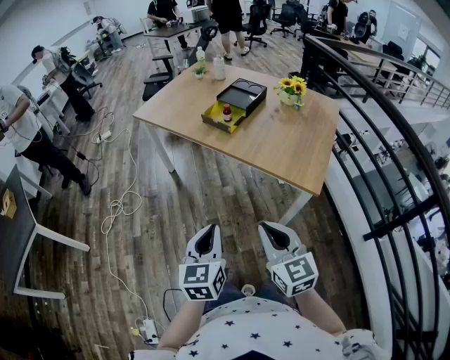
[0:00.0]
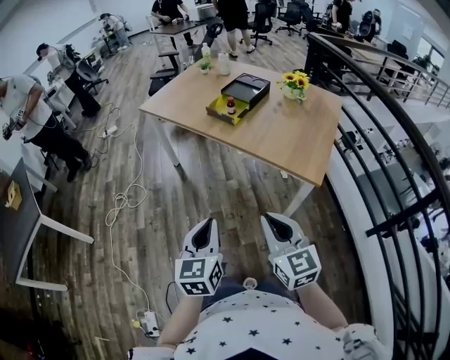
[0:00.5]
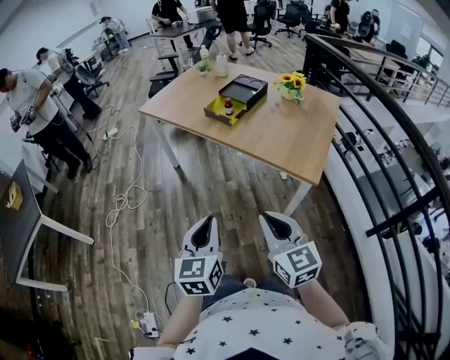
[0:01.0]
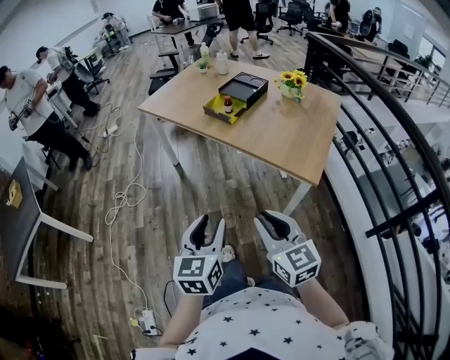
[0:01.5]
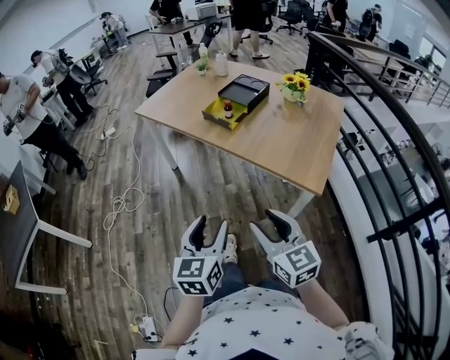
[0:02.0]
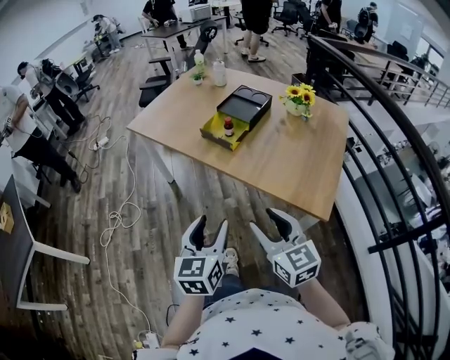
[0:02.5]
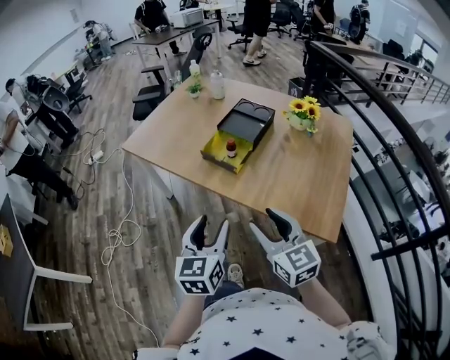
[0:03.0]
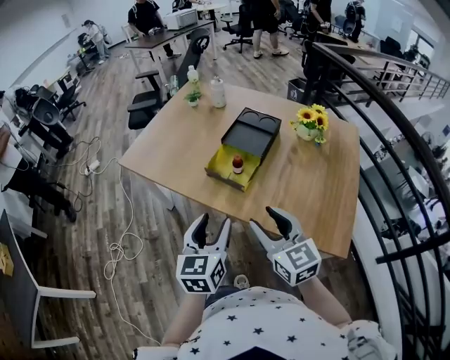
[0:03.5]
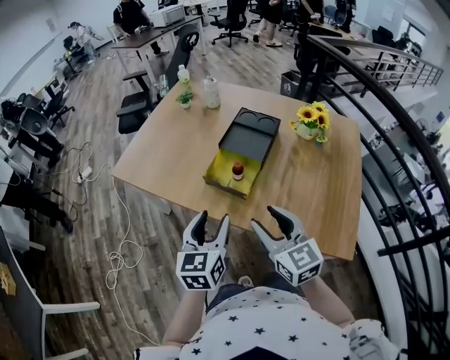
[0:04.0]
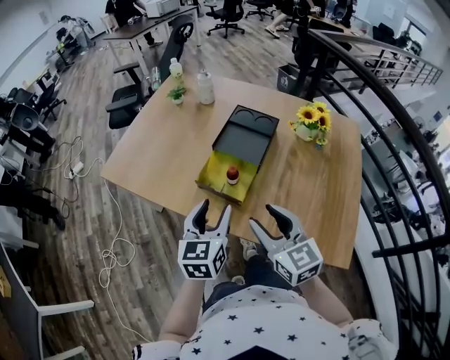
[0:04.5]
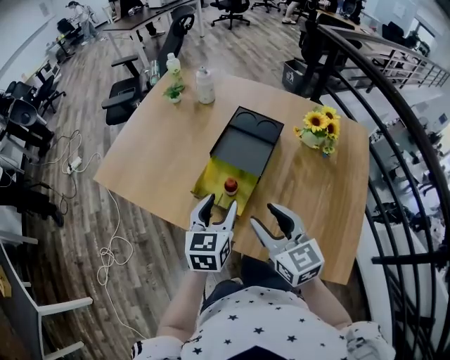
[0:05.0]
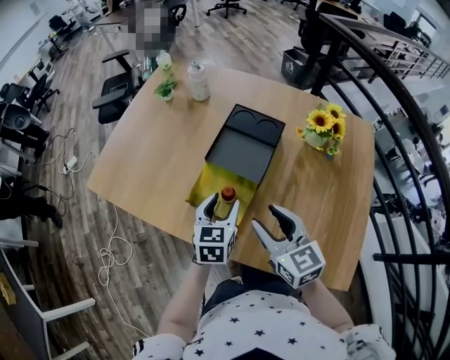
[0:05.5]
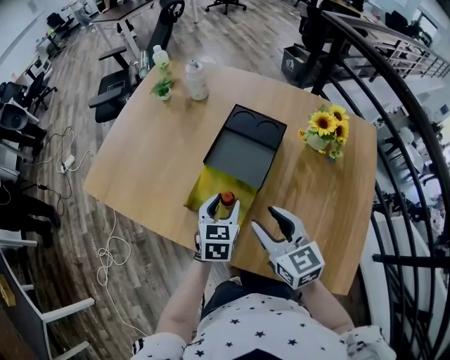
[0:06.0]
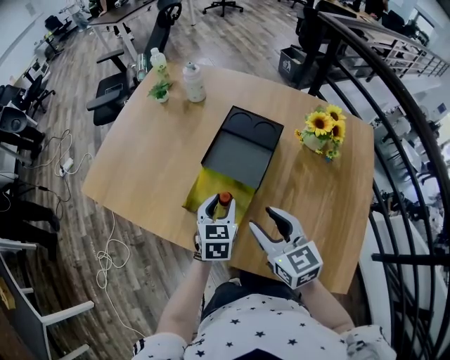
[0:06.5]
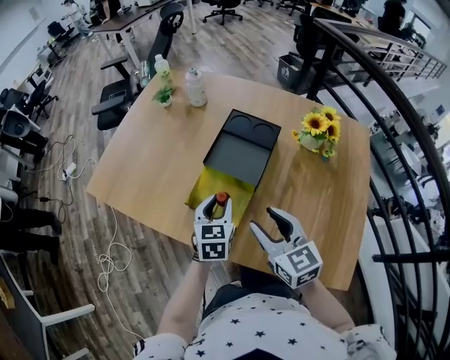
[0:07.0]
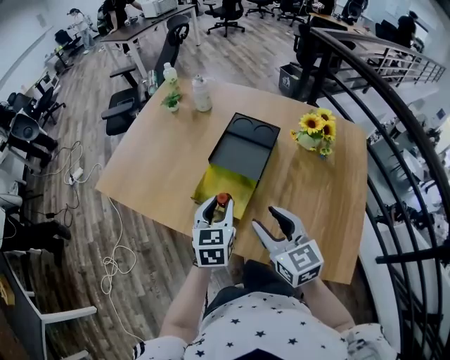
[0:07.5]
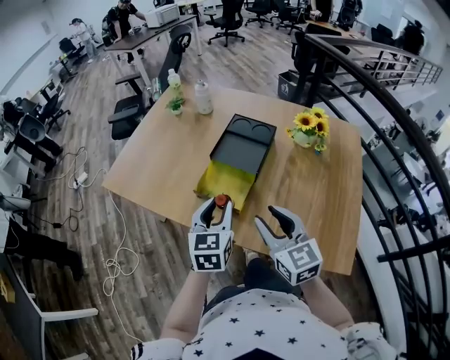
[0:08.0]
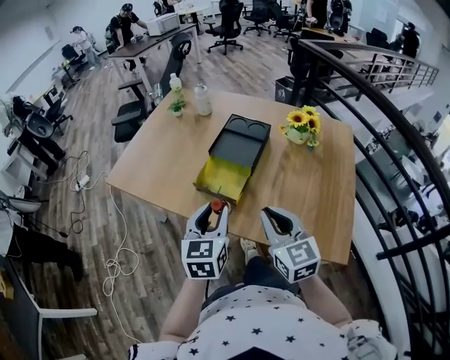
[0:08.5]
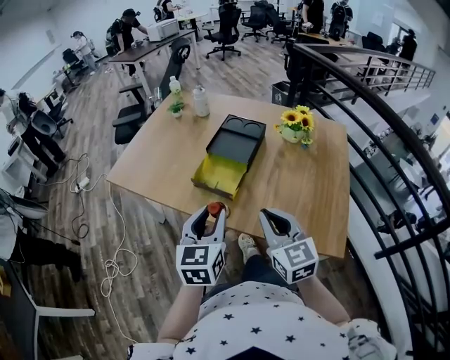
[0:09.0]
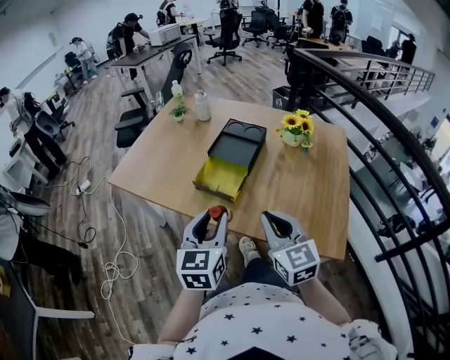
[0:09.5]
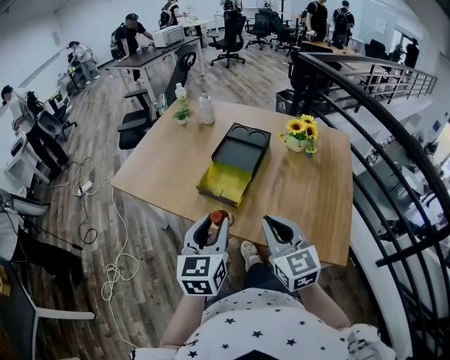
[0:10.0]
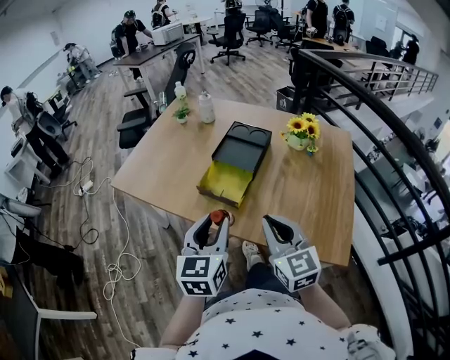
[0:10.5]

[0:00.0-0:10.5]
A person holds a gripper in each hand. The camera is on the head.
0:00.0 to 0:02.0: The left gripper opens its fingers, while the right gripper opens its fingers.
0:02.0 to 0:04.0: The pair of grippers is taken forward, roughly 40 cm.
0:04.0 to 0:06.5: The left gripper heads forward, downward and to the right, covering roughly 30 cm. Meanwhile the right gripper shifts about 20 cm forward and downward.
0:06.5 to 0:08.5: Both grippers travel together backward and upward, about 20 cm. The right gripper closes its fingers.
0:08.5 to 0:10.5: The left gripper ends up about 5 cm from where it was.

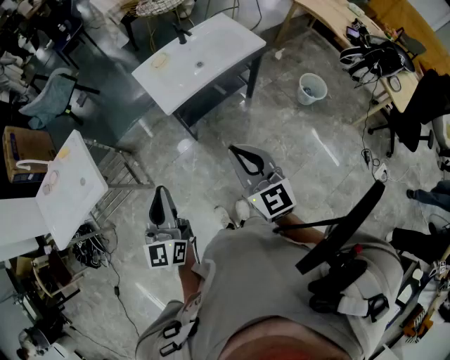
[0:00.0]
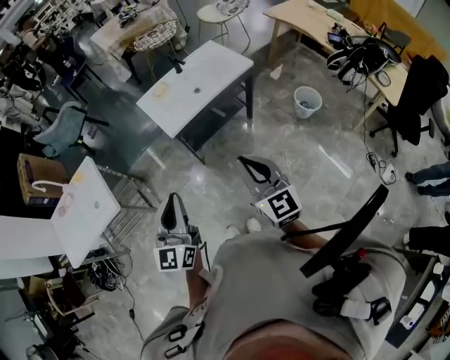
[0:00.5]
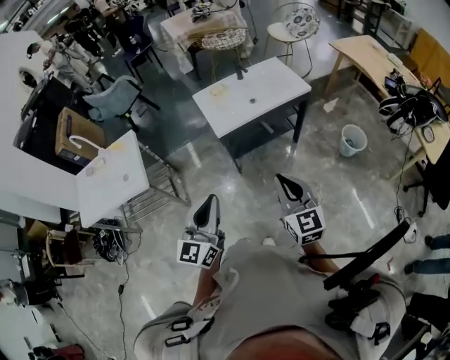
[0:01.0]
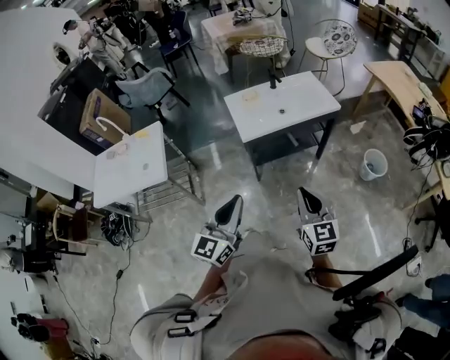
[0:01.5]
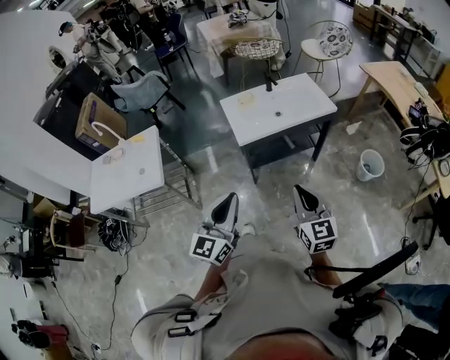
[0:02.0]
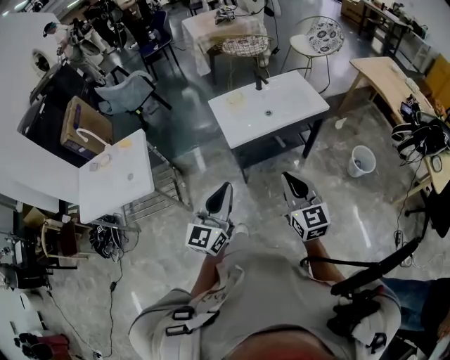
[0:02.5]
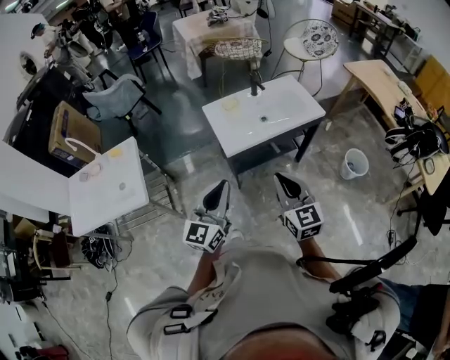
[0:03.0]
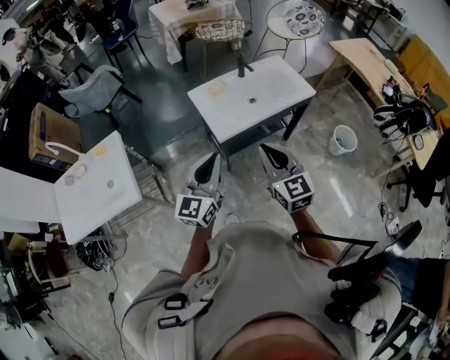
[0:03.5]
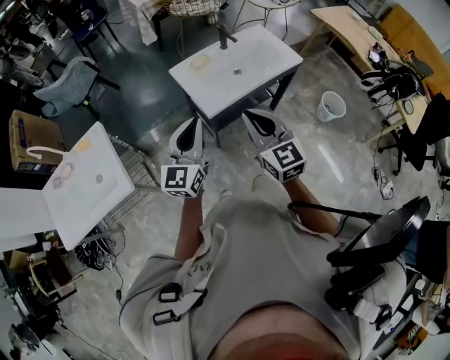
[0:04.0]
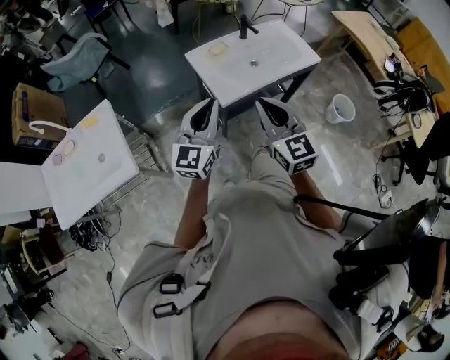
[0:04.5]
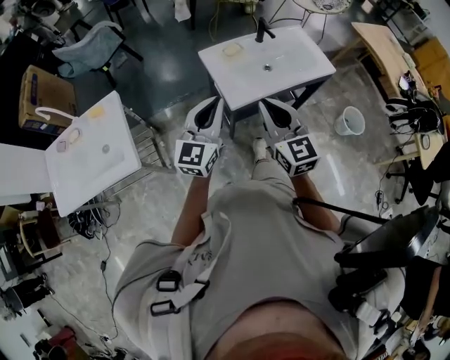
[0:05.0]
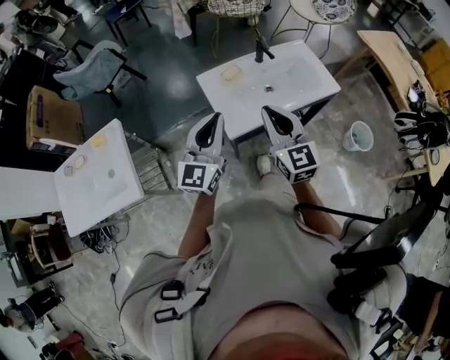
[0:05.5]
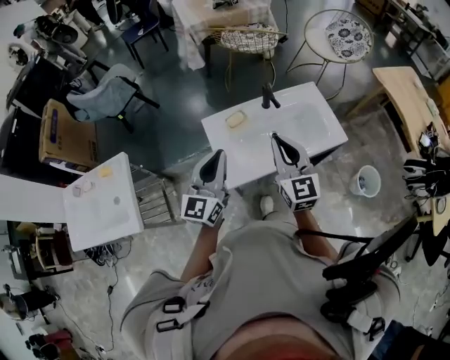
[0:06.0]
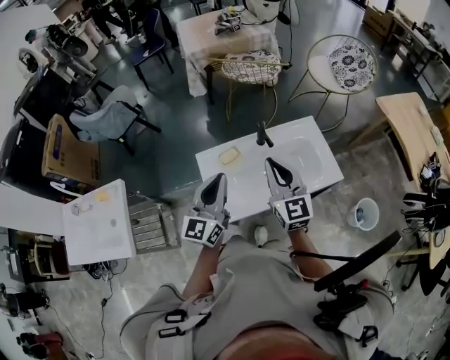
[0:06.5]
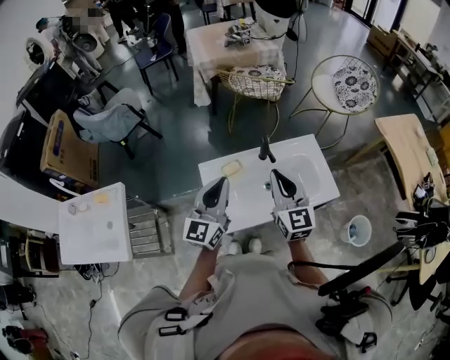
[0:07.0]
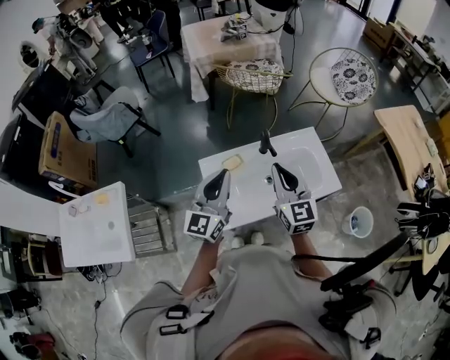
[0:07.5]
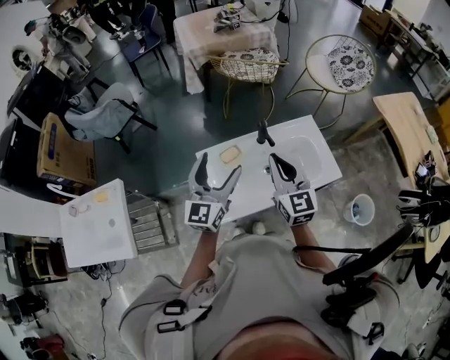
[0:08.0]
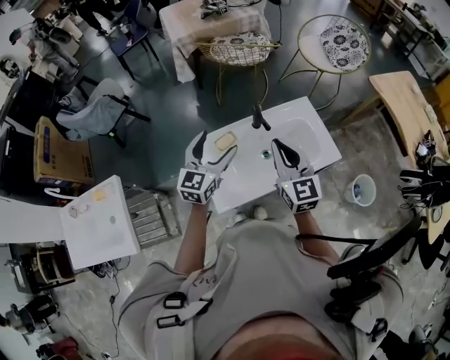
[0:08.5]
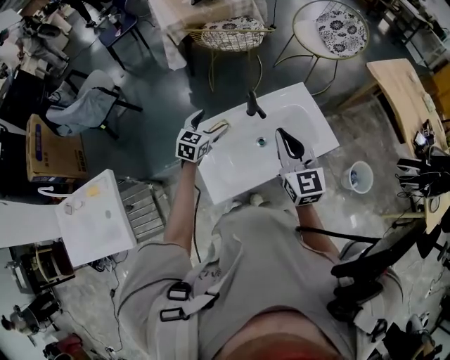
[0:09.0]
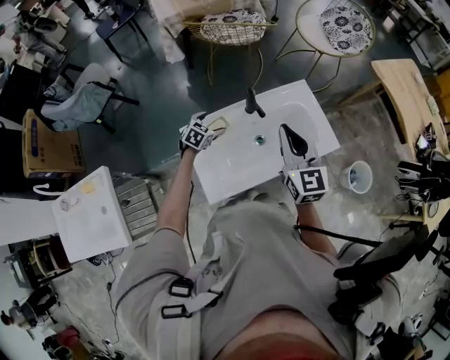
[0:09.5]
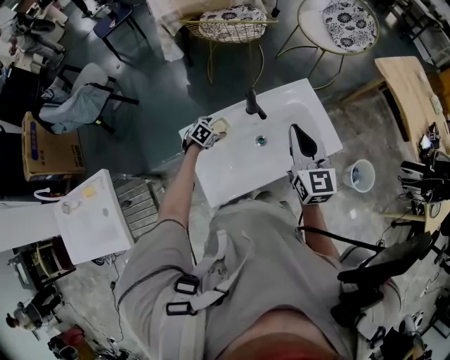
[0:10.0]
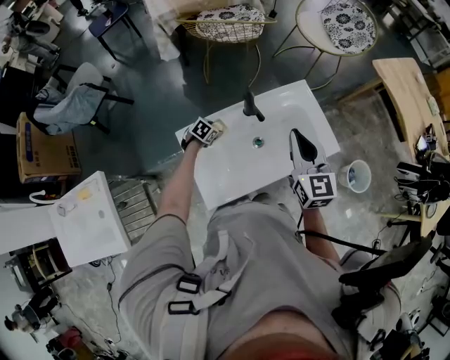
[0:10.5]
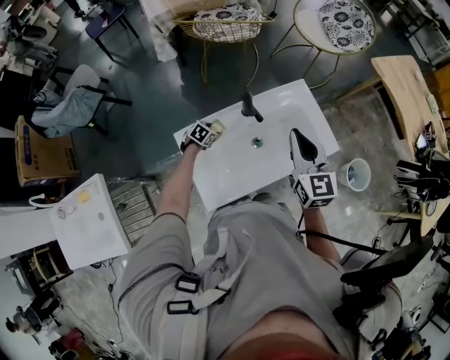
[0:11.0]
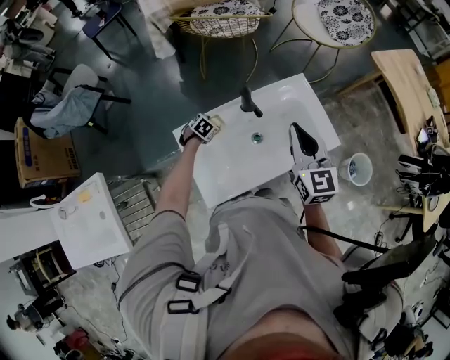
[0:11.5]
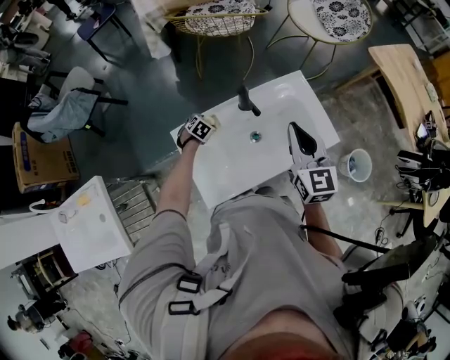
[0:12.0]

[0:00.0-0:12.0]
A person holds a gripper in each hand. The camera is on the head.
0:00.0 to 0:02.0: The two grippers go some 10 cm to the right and backward.
0:02.0 to 0:04.0: Both grippers move forward and to the left, about 25 cm.
0:04.0 to 0:06.0: Both grippers travel together forward, about 25 cm.
0:06.0 to 0:08.0: The grippers both shift forward by about 10 cm. The left gripper opens up.
0:08.0 to 0:10.0: The right gripper heads to the right and forward, covering some 10 cm. The left gripper travels downward and forward by about 40 cm, and tilts its fingers approximately 60 degrees downward.
0:10.0 to 0:12.0: The left gripper travels downward by some 5 cm.

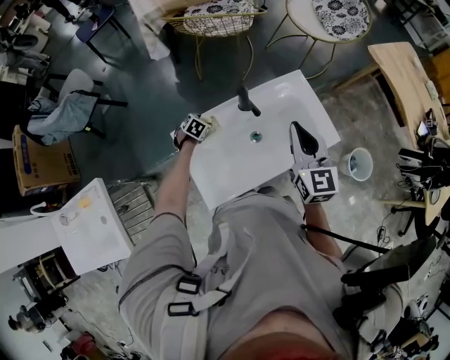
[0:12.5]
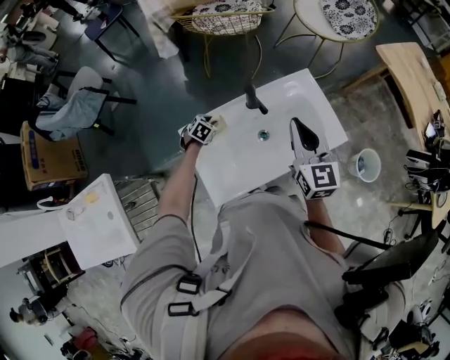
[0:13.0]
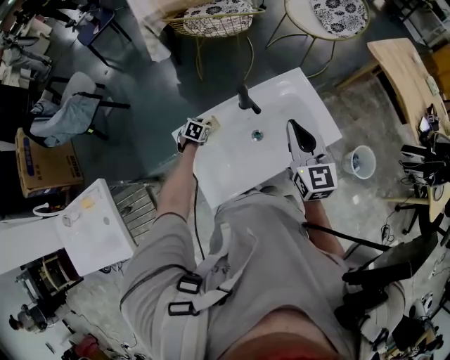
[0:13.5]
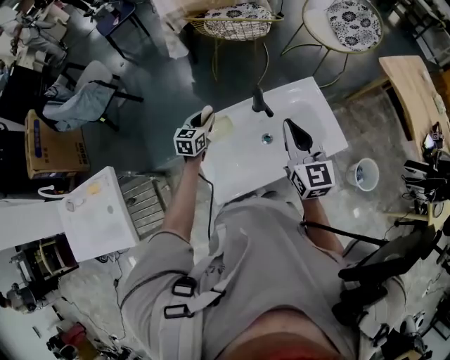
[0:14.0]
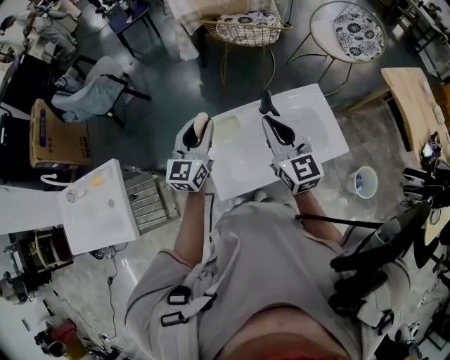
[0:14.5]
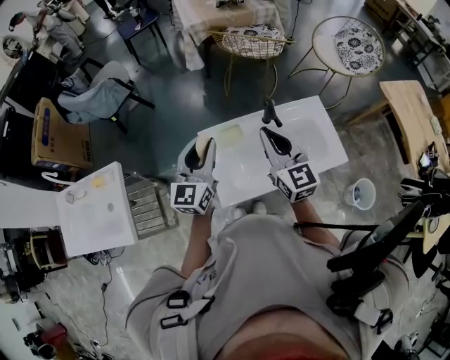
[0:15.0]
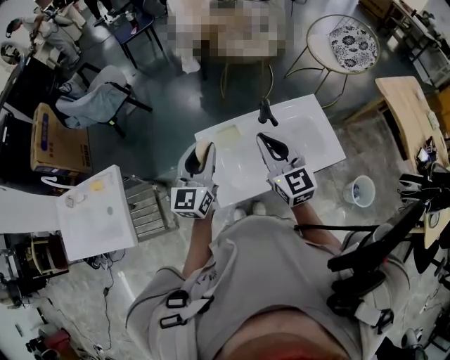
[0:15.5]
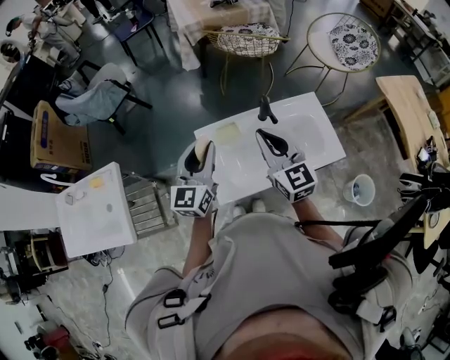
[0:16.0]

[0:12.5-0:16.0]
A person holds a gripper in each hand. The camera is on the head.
0:12.5 to 0:14.5: The right gripper travels to the left and upward by approximately 15 cm, and turns by about 20 degrees; the left gripper moves upward, about 40 cm, and tilts its fingers roughly 70 degrees upward.
0:14.5 to 0:16.0: The left gripper heads backward, covering roughly 5 cm.

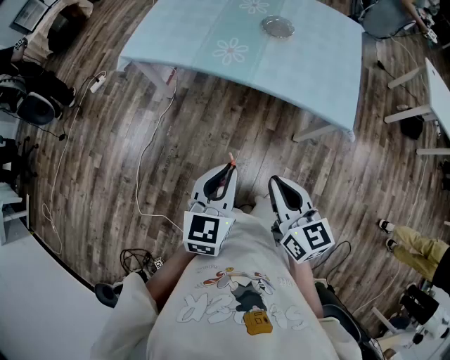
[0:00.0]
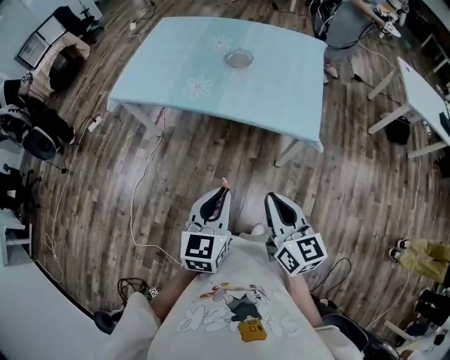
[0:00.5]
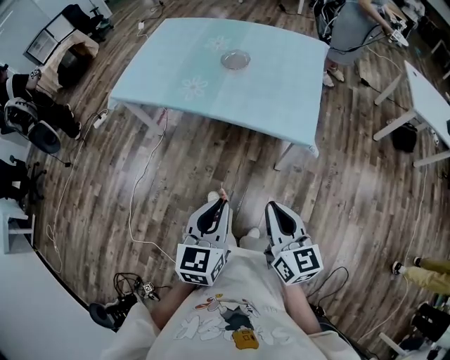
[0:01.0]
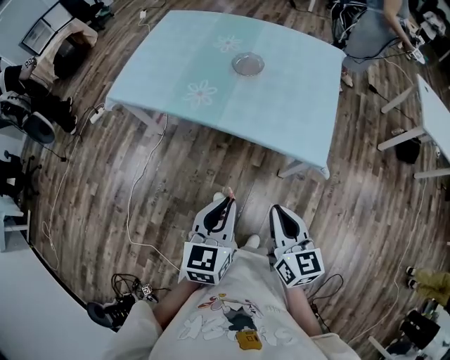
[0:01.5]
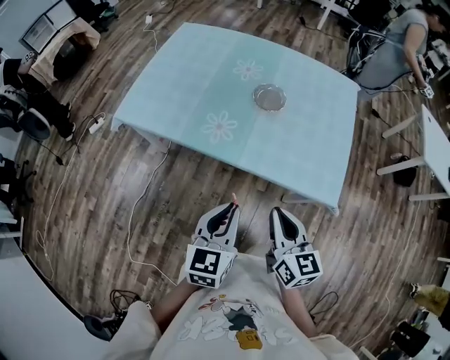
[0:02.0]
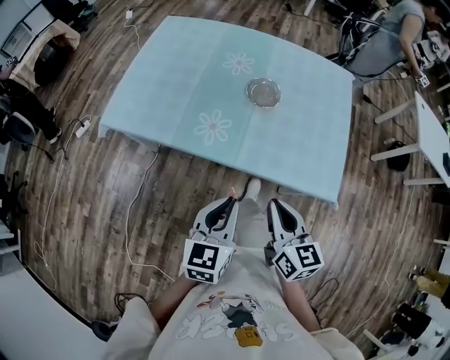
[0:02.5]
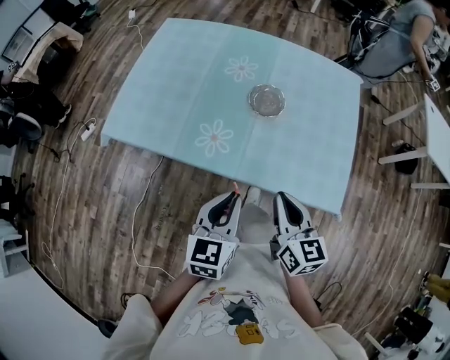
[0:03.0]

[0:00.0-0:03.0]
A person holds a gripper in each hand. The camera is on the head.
0:00.0 to 0:01.5: Both grippers move to the right, some 20 cm.
0:01.5 to 0:03.0: The grippers both shift forward and to the left by roughly 30 cm.
